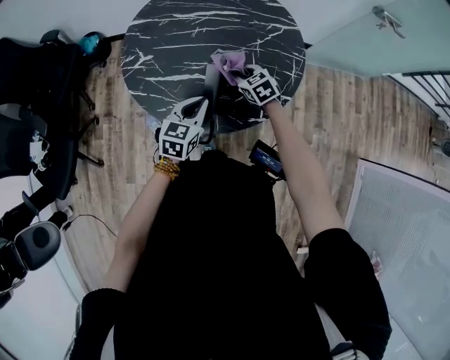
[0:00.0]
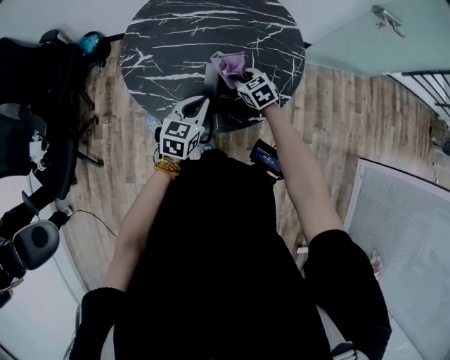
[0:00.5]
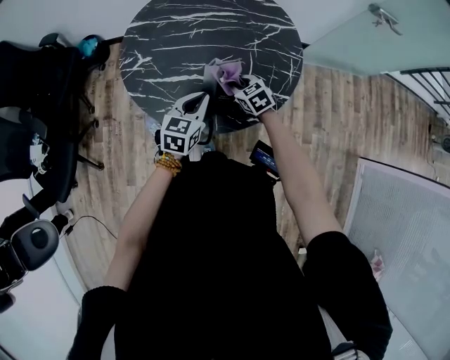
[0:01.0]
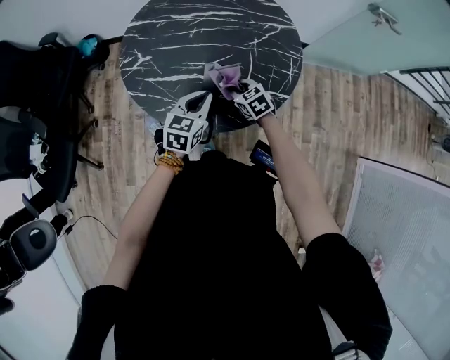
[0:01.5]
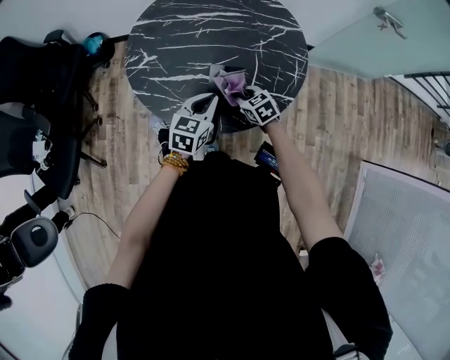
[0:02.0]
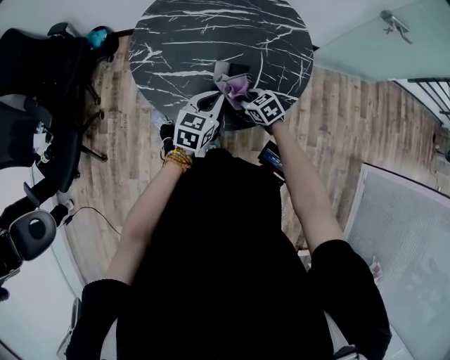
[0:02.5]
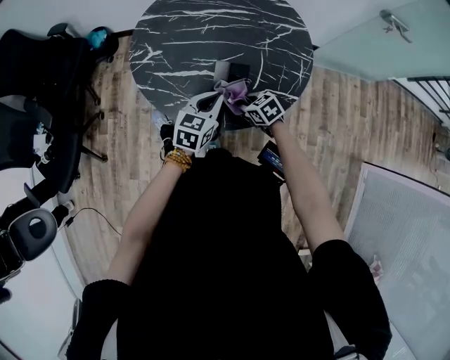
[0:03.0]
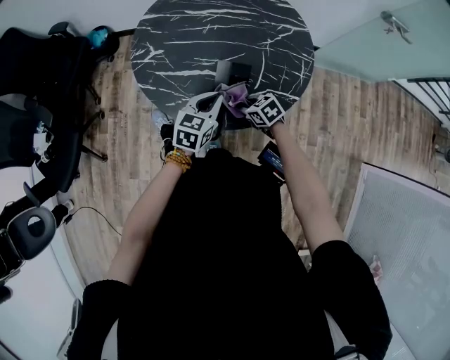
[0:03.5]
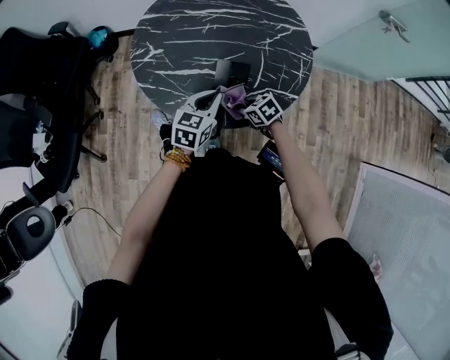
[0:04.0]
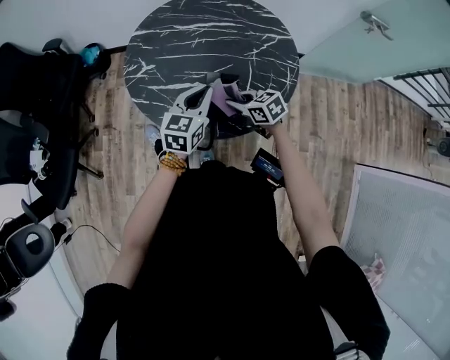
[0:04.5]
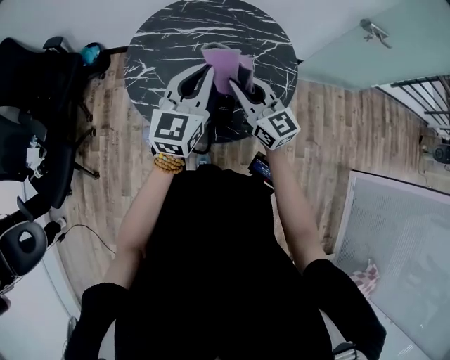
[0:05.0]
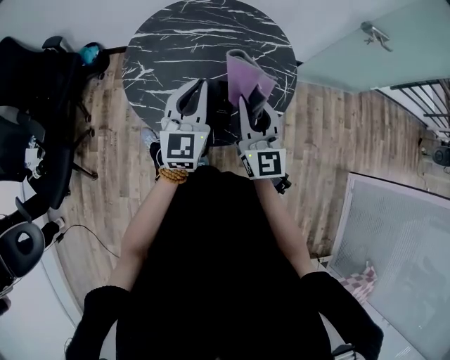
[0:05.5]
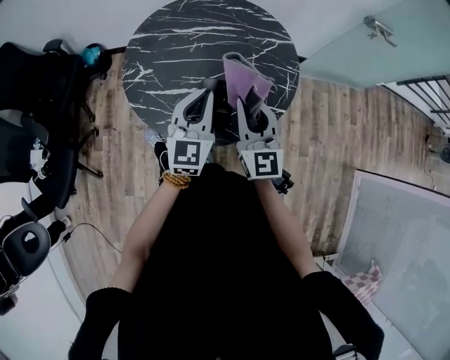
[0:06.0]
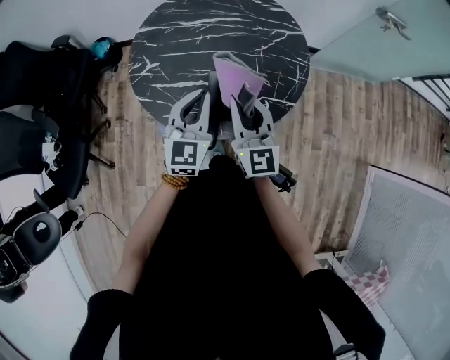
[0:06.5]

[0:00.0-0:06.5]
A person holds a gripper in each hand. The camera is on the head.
0:00.0 to 0:02.0: The right gripper goes roughly 5 cm backward.
0:02.0 to 0:04.5: Both grippers move upward, approximately 5 cm.
0:04.5 to 0:06.5: The right gripper moves upward, about 20 cm, and points its fingers about 40 degrees further upward. Meanwhile the left gripper travels upward by some 5 cm, and rotates roughly 20 degrees.

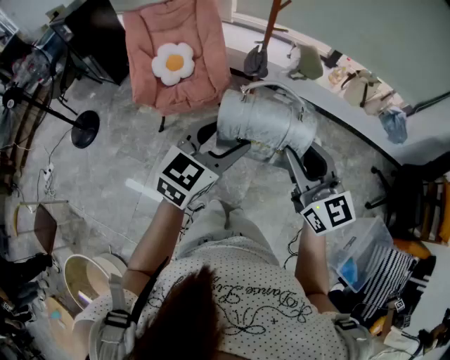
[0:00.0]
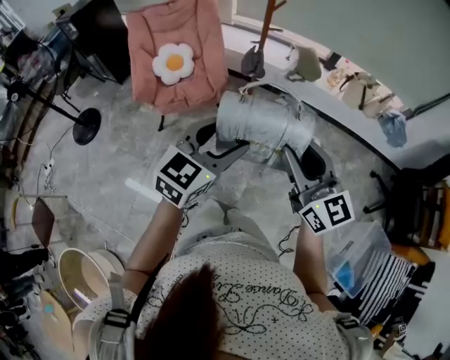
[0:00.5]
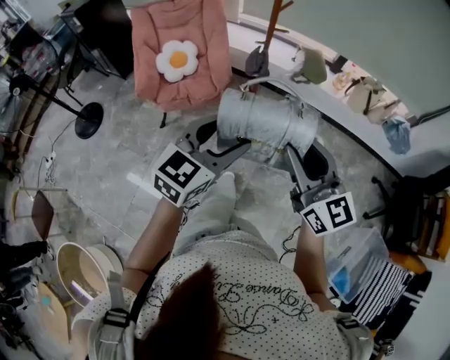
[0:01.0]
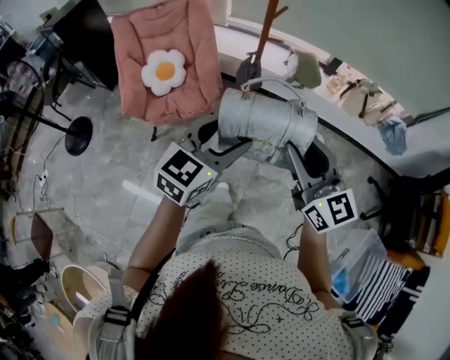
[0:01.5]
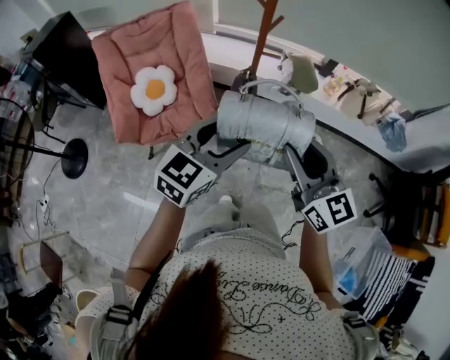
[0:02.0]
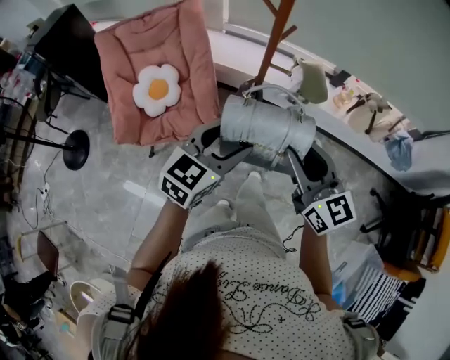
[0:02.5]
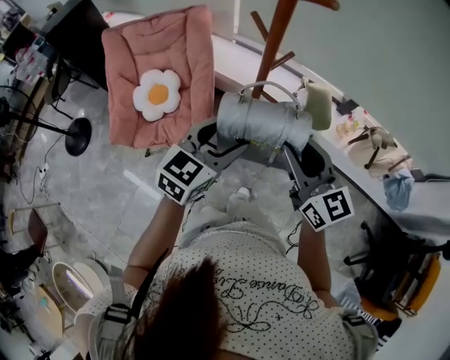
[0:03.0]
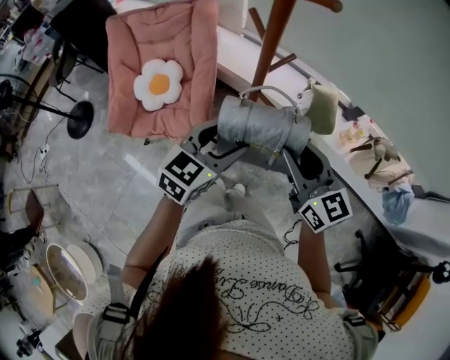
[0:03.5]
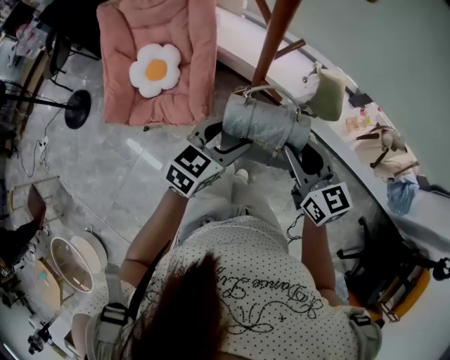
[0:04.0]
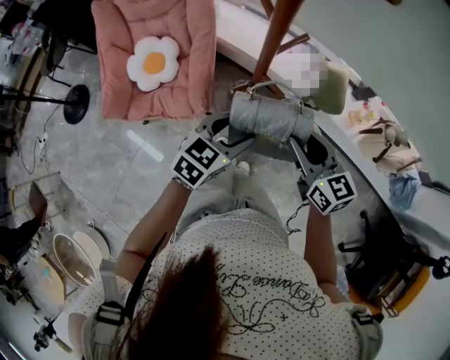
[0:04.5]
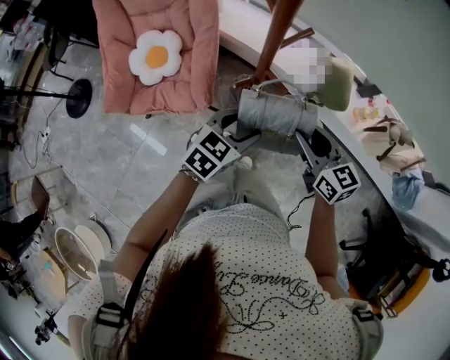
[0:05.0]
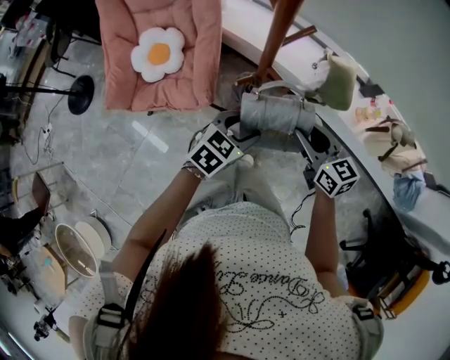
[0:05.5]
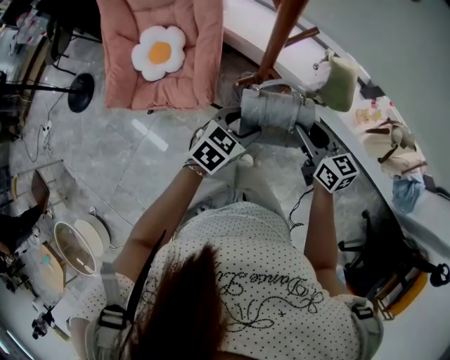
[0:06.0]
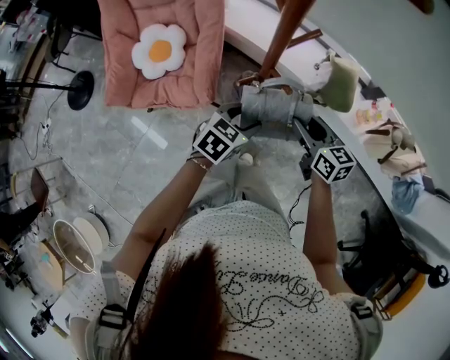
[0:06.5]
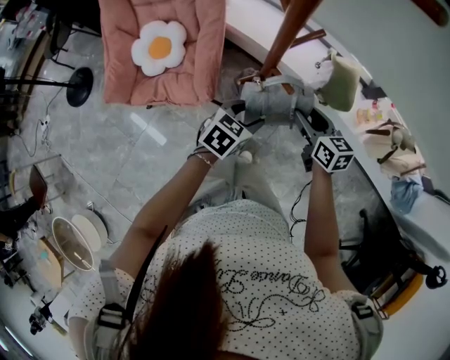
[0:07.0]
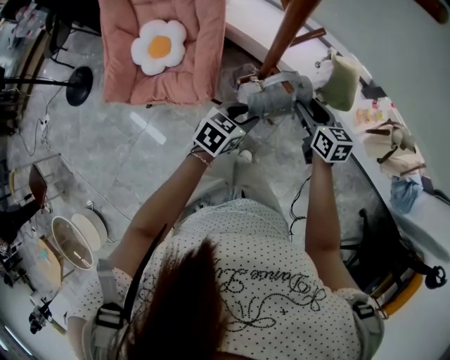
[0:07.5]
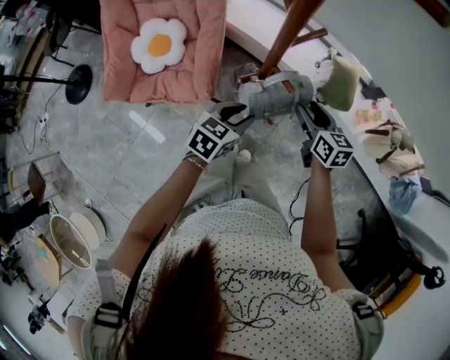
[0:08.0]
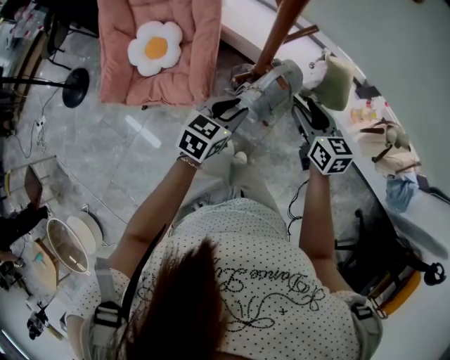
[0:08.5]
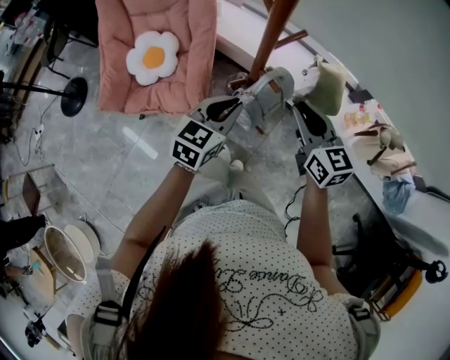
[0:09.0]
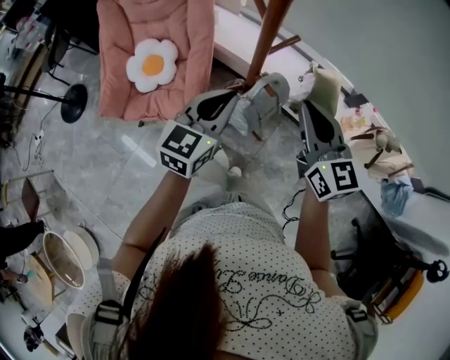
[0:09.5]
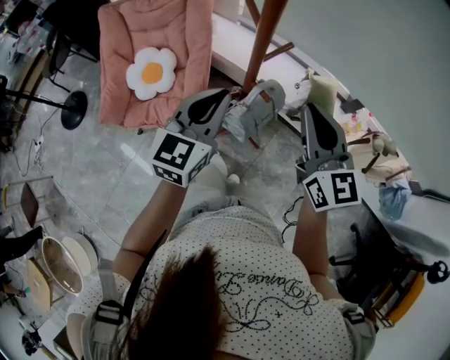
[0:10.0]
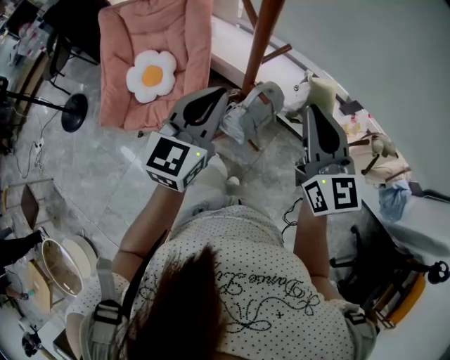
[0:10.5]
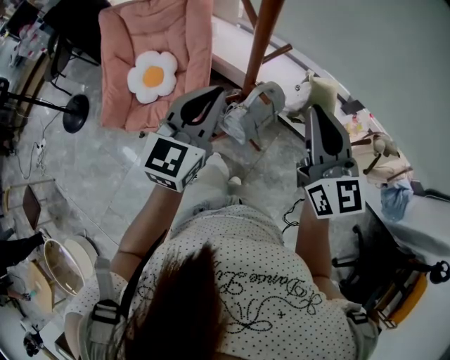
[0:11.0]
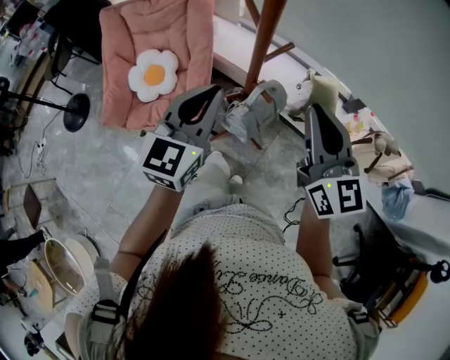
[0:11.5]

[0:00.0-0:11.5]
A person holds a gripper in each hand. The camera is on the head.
0:00.0 to 0:02.0: Both grippers move forward, some 20 cm.
0:02.0 to 0:04.0: The two grippers go about 30 cm forward, downward and to the right. The right gripper turns by some 20 degrees; the left gripper swivels about 20 degrees.
0:04.0 to 0:06.0: The right gripper travels downward and forward by about 10 cm, while the left gripper shifts about 10 cm downward.
0:06.0 to 0:07.5: The left gripper closes its fingers. Meanwhile the right gripper is displaced forward and downward by approximately 10 cm.
0:07.5 to 0:09.5: Both grippers move upward, roughly 20 cm. The left gripper turns by roughly 30 degrees, and closes. Meanwhile the right gripper changes its angle by approximately 30 degrees, and closes up.
0:09.5 to 0:11.5: Both grippers move upward, roughly 5 cm.

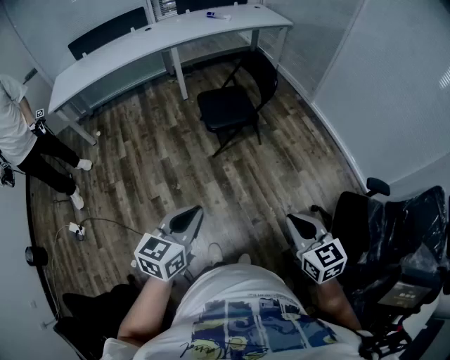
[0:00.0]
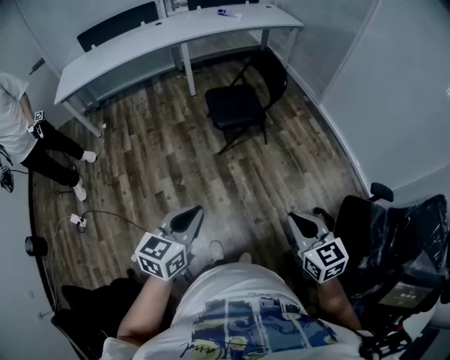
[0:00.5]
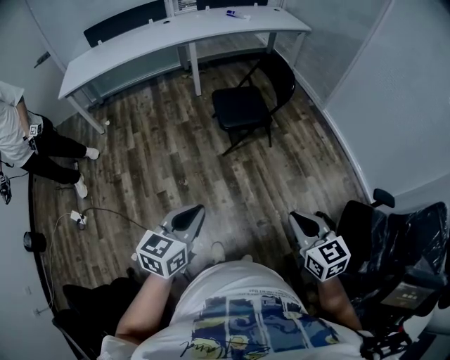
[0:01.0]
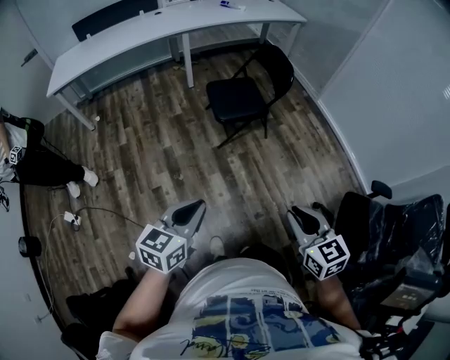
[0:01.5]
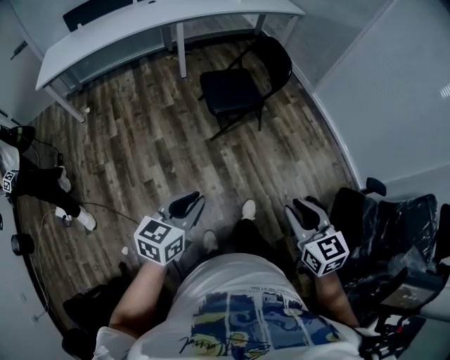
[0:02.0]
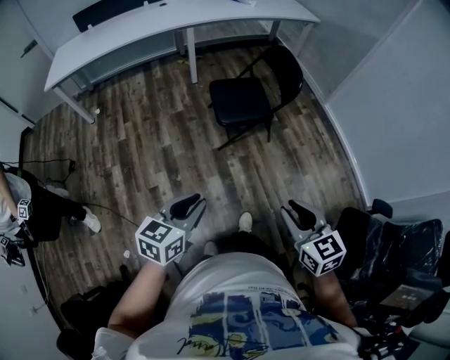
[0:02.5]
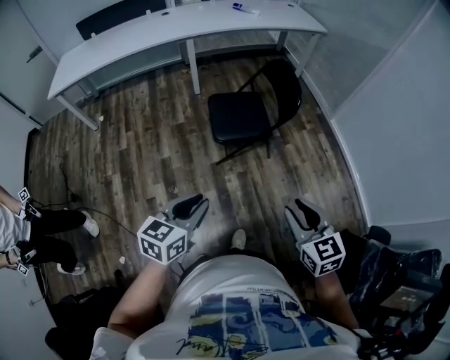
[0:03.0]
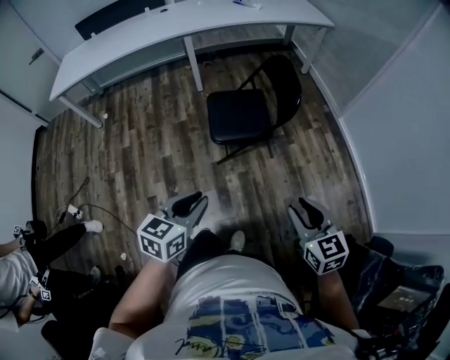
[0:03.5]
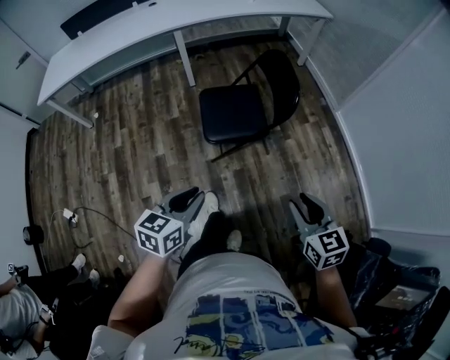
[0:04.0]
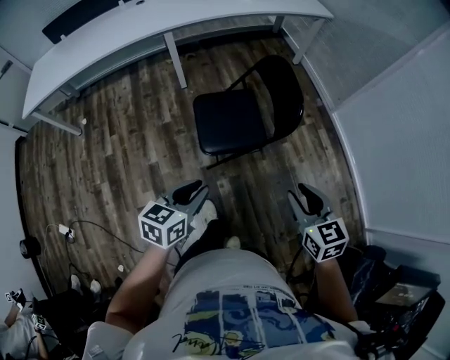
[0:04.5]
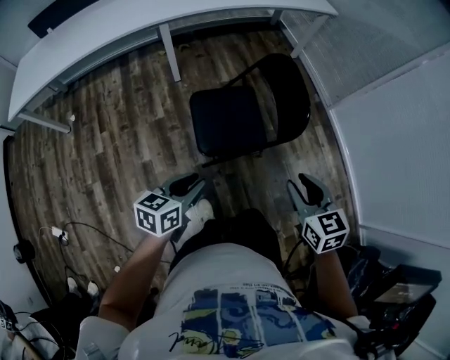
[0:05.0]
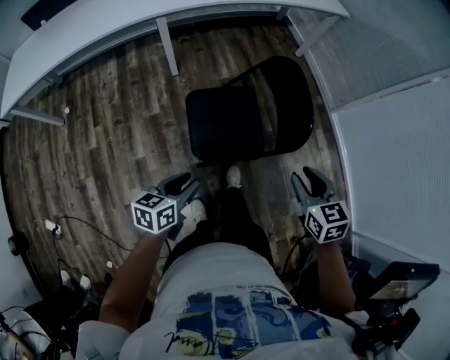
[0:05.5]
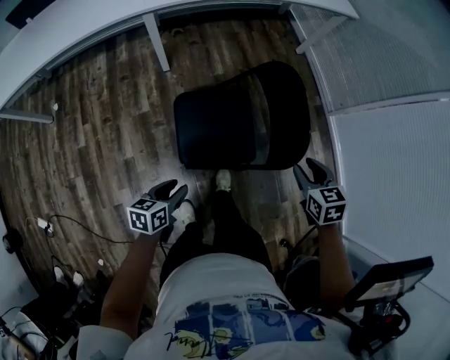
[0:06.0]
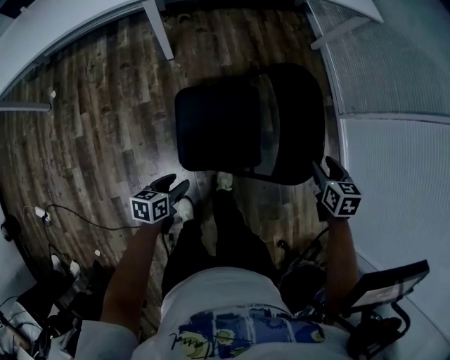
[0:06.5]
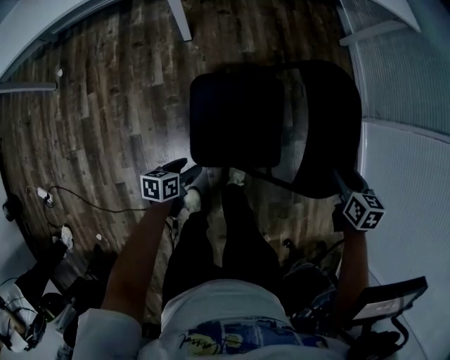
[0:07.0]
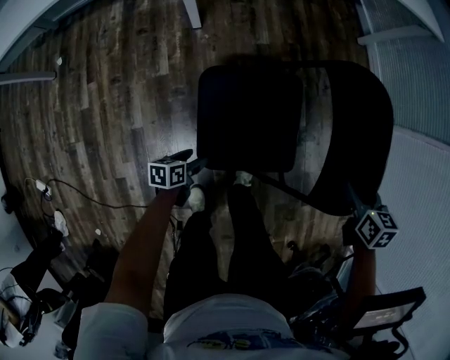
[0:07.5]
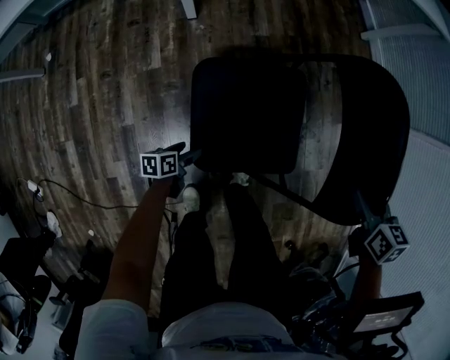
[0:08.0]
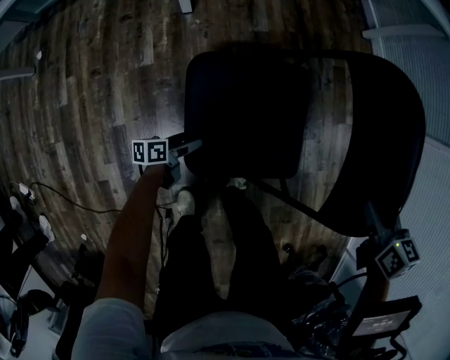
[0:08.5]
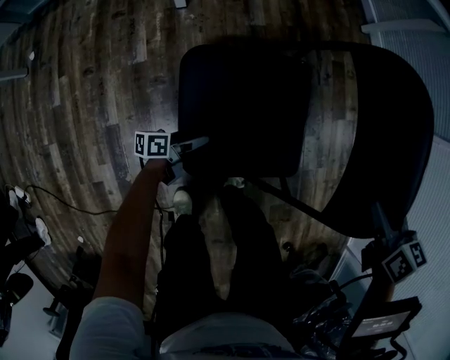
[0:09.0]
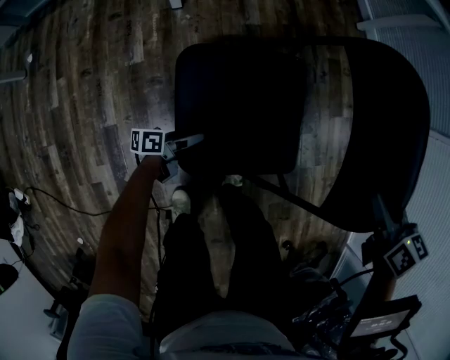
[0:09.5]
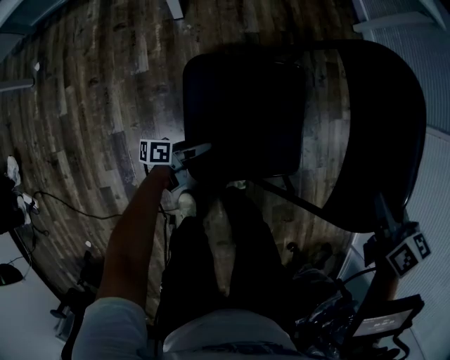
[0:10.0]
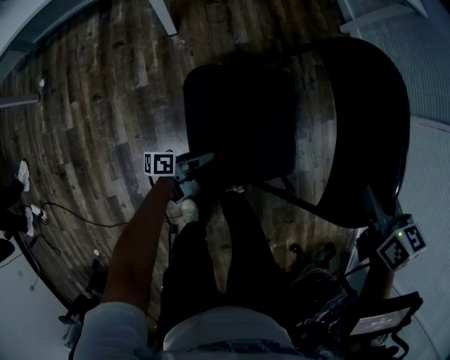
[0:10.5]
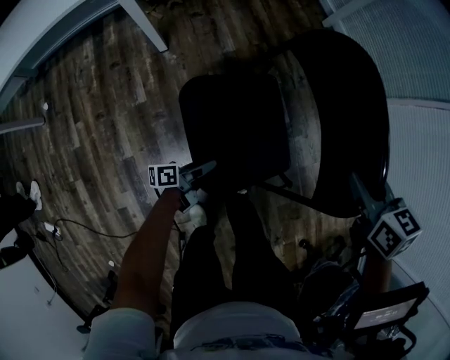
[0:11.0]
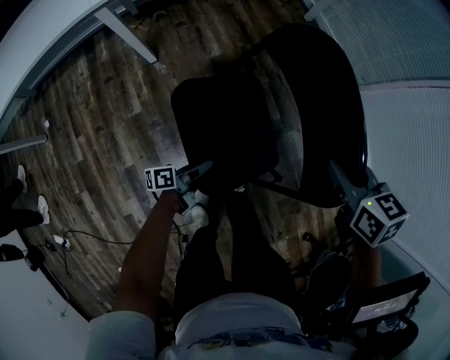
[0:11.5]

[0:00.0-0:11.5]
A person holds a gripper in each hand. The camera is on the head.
0:00.0 to 0:02.0: The left gripper is displaced downward by about 5 cm, while the right gripper goes approximately 5 cm to the left, and opens.
0:02.0 to 0:04.0: The grippers both shift forward and to the right by about 30 cm.
0:04.0 to 0:06.0: The left gripper shifts approximately 35 cm forward and downward, and swivels about 20 degrees; the right gripper is displaced forward by some 40 cm, and swivels roughly 20 degrees.
0:06.0 to 0:07.5: The left gripper goes roughly 25 cm downward. The right gripper travels downward and forward by roughly 15 cm.
0:07.5 to 0:09.5: The left gripper travels downward and forward by roughly 10 cm, and swivels approximately 30 degrees.
0:09.5 to 0:11.5: The left gripper travels upward and to the right by about 20 cm, and closes up. The right gripper shifts roughly 10 cm upward, and closes.
